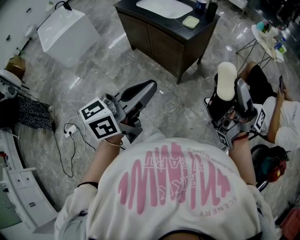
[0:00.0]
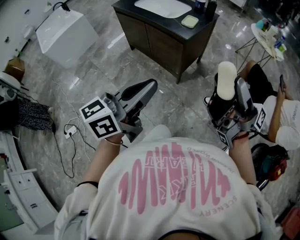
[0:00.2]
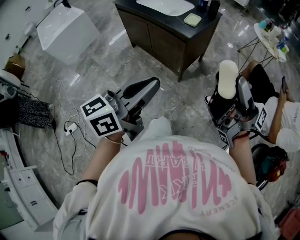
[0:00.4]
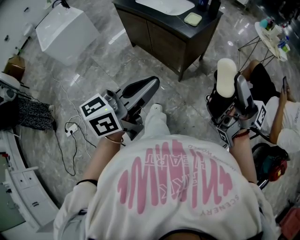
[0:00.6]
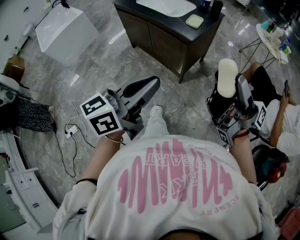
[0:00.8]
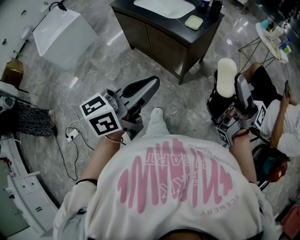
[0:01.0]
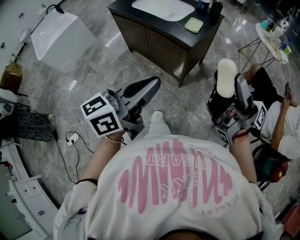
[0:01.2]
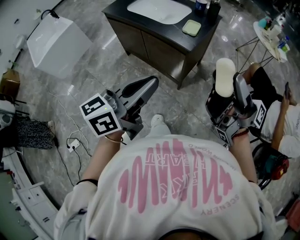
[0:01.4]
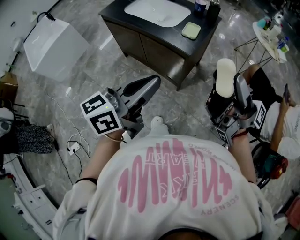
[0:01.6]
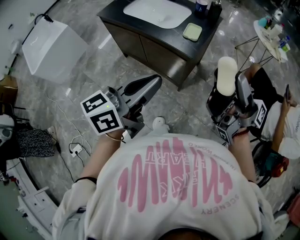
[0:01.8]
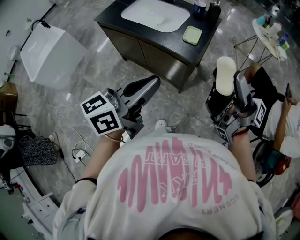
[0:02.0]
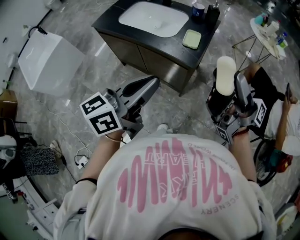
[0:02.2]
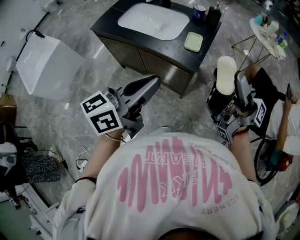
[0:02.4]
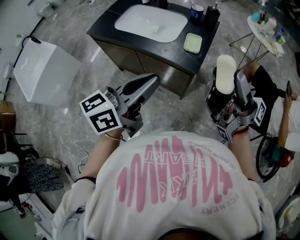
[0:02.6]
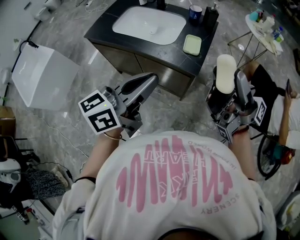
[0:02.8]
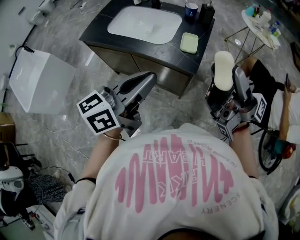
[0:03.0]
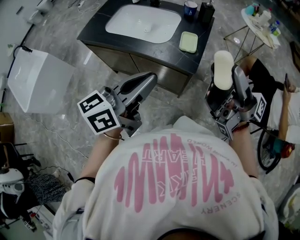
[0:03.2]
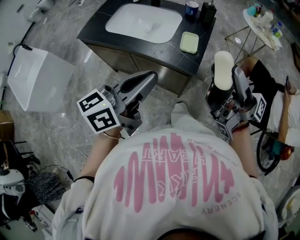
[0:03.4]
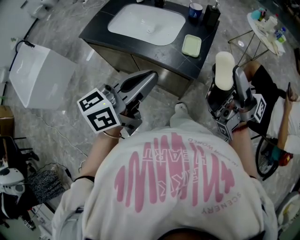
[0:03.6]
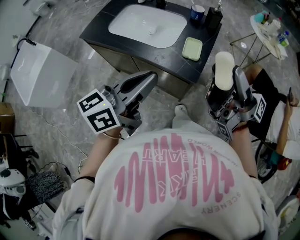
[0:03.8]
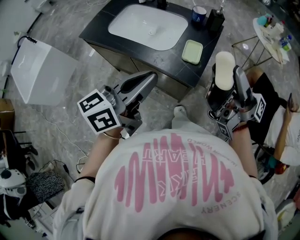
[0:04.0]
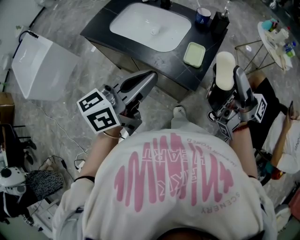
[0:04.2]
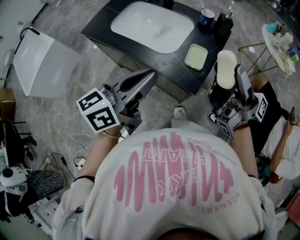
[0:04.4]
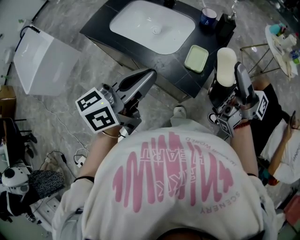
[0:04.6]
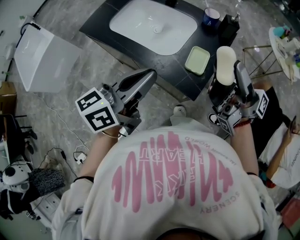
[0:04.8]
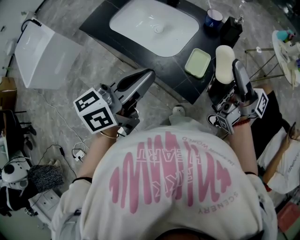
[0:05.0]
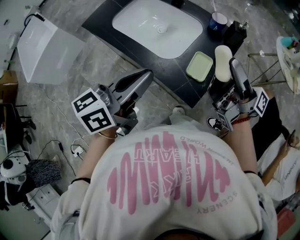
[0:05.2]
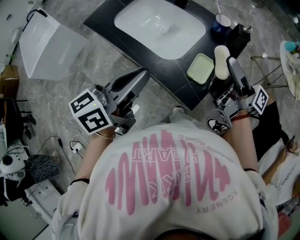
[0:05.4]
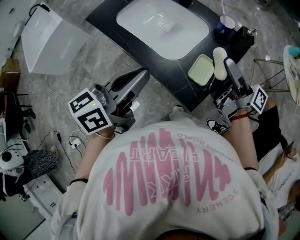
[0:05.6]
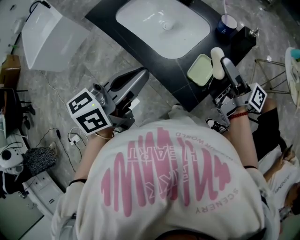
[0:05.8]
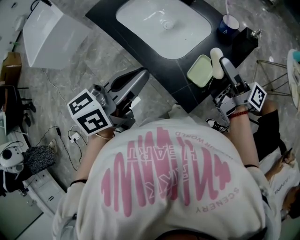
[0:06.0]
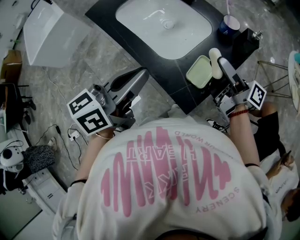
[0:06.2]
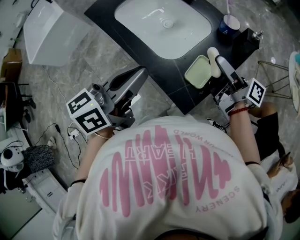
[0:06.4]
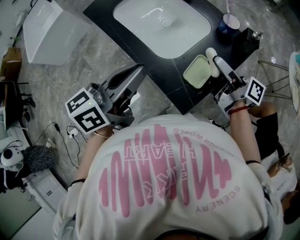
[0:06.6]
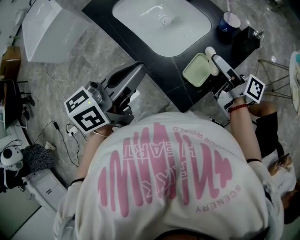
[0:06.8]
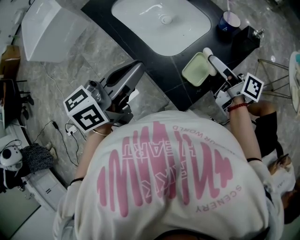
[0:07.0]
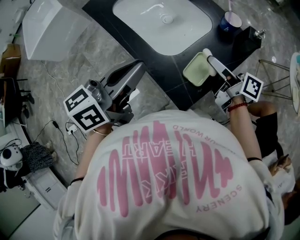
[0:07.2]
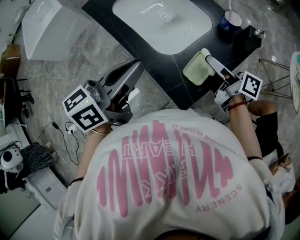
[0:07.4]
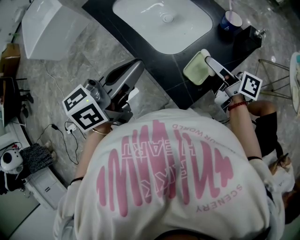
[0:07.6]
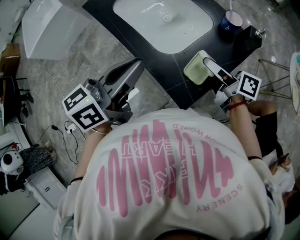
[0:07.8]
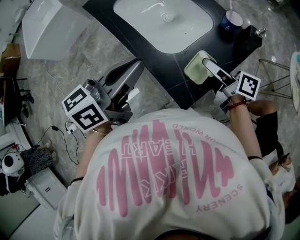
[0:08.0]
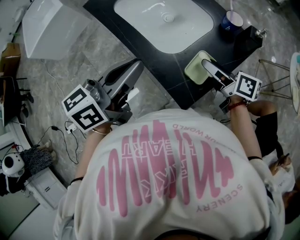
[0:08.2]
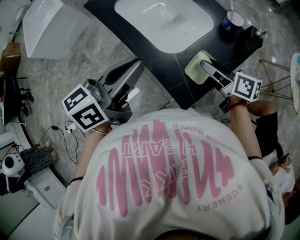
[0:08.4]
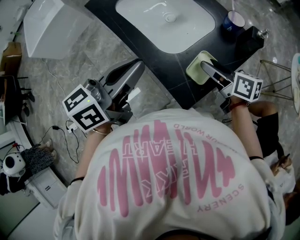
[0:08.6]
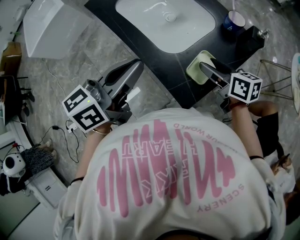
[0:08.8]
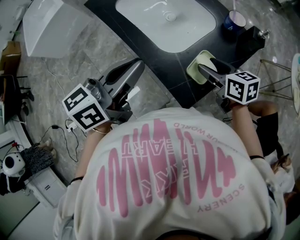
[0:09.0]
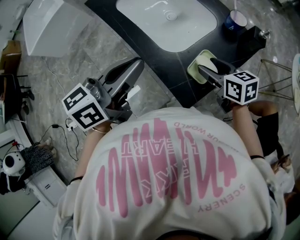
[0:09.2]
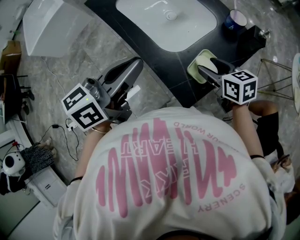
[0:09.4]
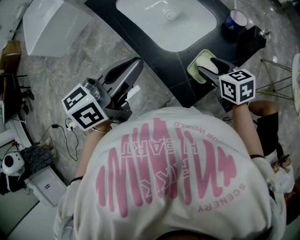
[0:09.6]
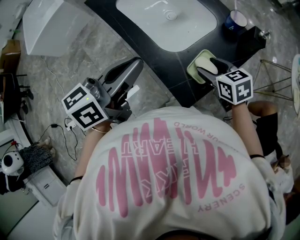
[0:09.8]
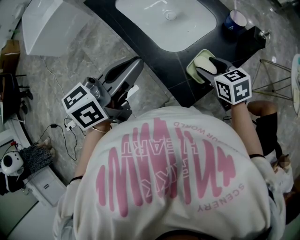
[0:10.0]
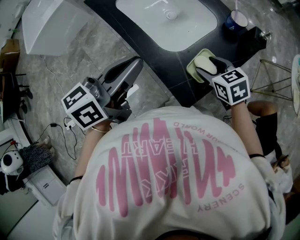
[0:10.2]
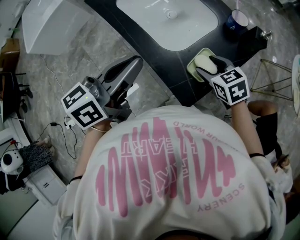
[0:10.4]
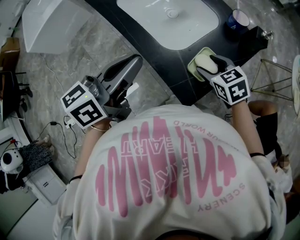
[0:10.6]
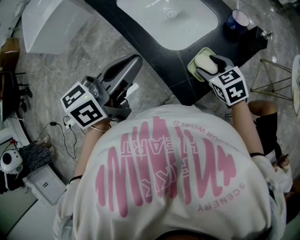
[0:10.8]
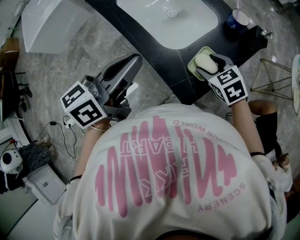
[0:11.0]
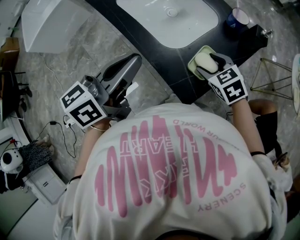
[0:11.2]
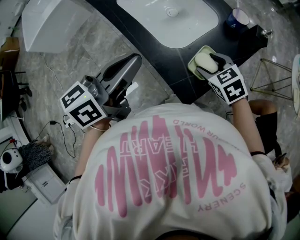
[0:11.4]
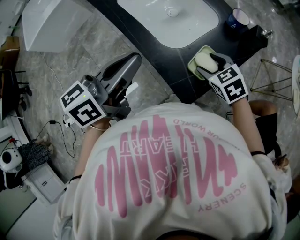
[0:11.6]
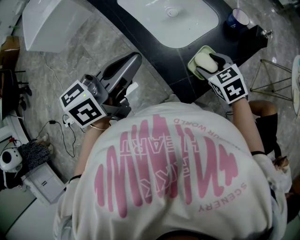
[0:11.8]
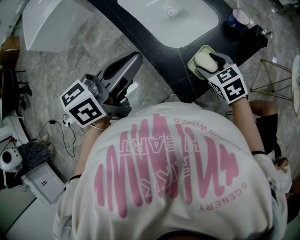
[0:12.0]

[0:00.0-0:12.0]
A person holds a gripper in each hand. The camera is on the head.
0.0 to 1.6 s: Both grippers travel together forward, approximately 15 cm.
1.6 to 3.0 s: Both grippers travel together forward and to the left, some 15 cm.
3.0 to 4.4 s: The grippers both shift forward by roughly 10 cm.
4.4 to 6.0 s: The right gripper heads forward and downward, covering some 25 cm, and changes its angle by approximately 20 degrees. Meanwhile the left gripper moves forward, roughly 10 cm.
6.0 to 7.6 s: The right gripper goes about 5 cm downward, and changes its angle by some 30 degrees.
7.6 to 9.0 s: The right gripper changes its angle by about 40 degrees.
9.0 to 10.4 s: The right gripper turns by approximately 30 degrees.
10.4 to 12.0 s: The grippers stay close to where they were, moving slightly.

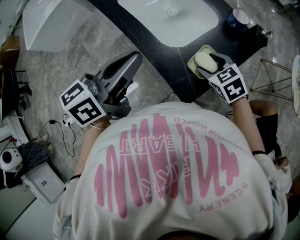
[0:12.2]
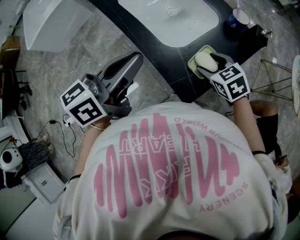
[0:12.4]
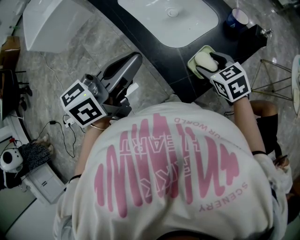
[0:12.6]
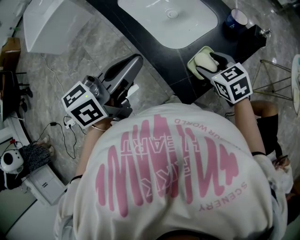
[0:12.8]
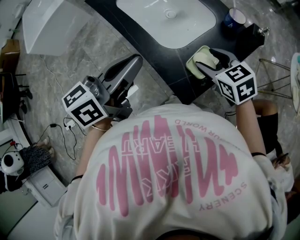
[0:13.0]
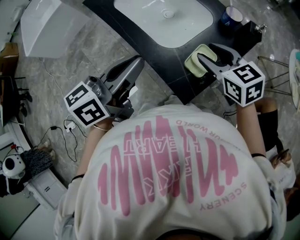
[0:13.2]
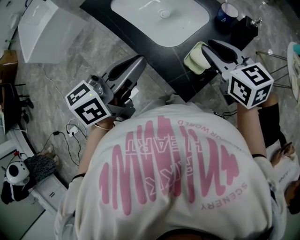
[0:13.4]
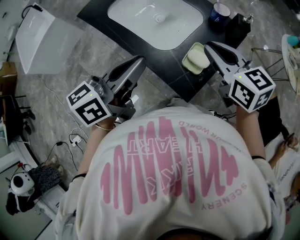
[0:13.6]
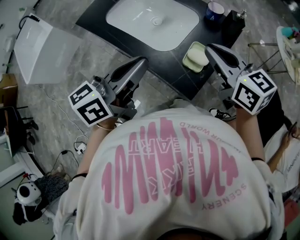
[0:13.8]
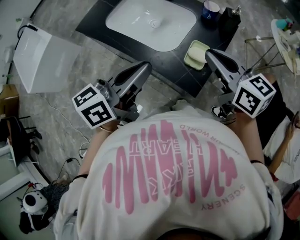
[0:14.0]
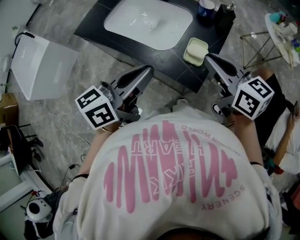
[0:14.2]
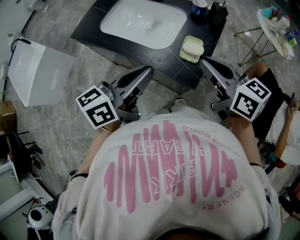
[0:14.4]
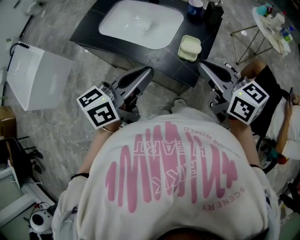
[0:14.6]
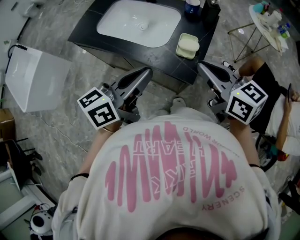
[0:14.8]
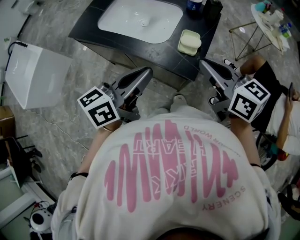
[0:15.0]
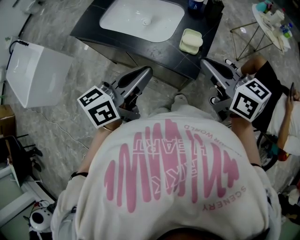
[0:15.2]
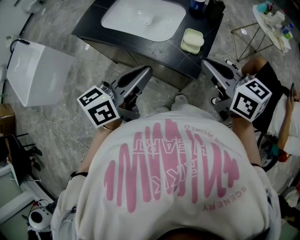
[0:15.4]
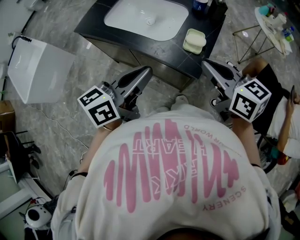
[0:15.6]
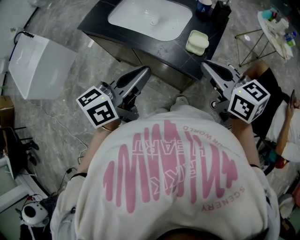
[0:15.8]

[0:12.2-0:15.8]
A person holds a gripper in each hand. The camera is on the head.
12.2 to 14.0 s: The right gripper travels upward by some 20 cm, tips its fingers upward by about 40 degrees, and closes up.
14.0 to 15.8 s: Both grippers travel together backward, approximately 10 cm.

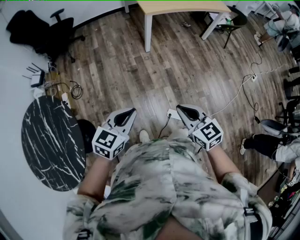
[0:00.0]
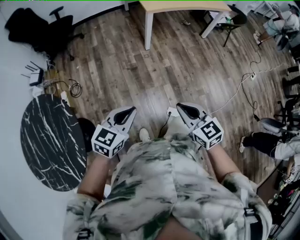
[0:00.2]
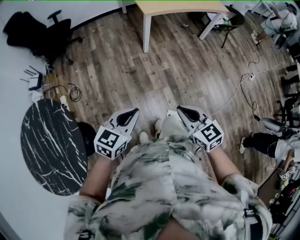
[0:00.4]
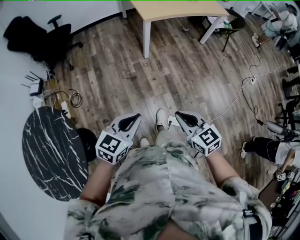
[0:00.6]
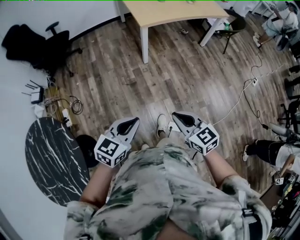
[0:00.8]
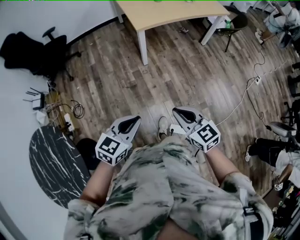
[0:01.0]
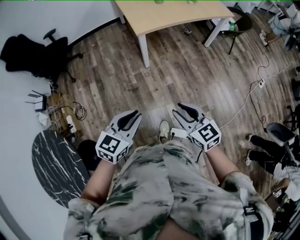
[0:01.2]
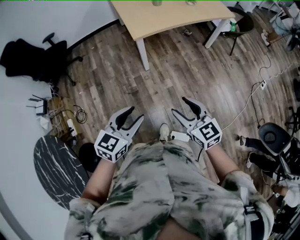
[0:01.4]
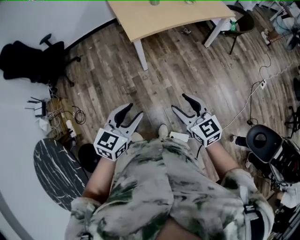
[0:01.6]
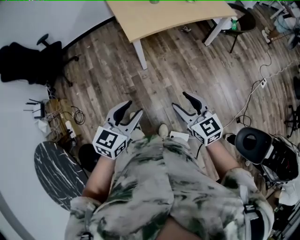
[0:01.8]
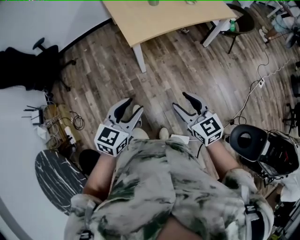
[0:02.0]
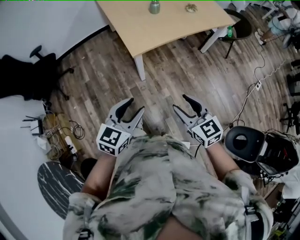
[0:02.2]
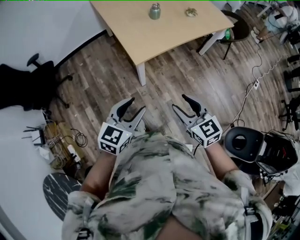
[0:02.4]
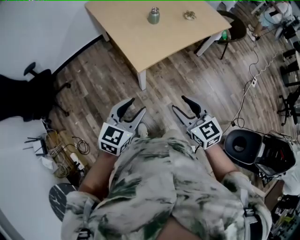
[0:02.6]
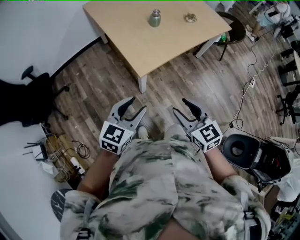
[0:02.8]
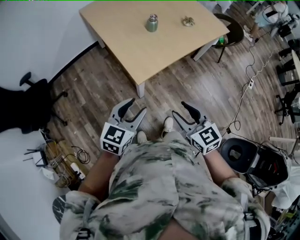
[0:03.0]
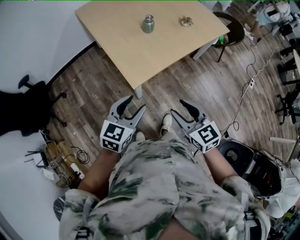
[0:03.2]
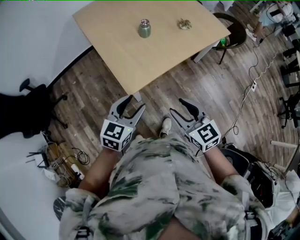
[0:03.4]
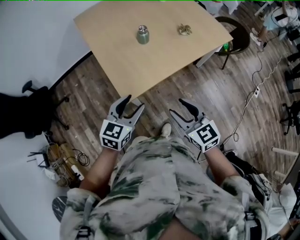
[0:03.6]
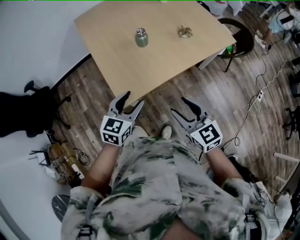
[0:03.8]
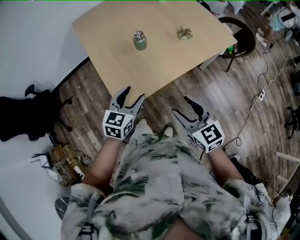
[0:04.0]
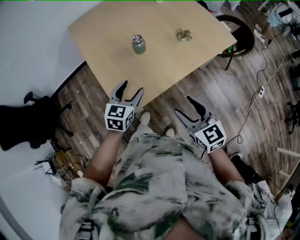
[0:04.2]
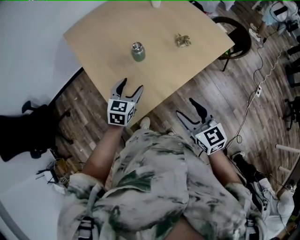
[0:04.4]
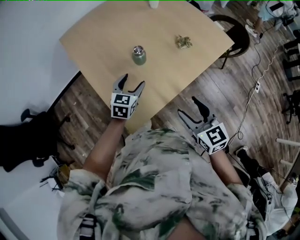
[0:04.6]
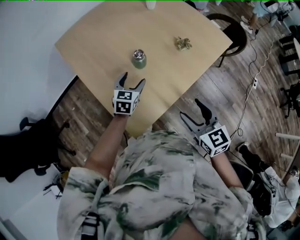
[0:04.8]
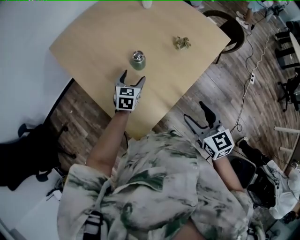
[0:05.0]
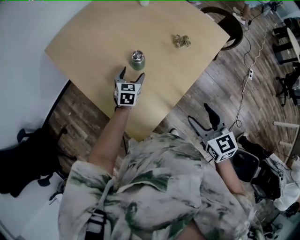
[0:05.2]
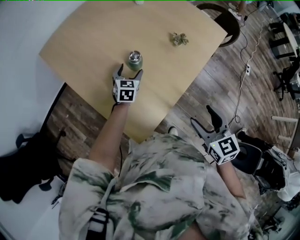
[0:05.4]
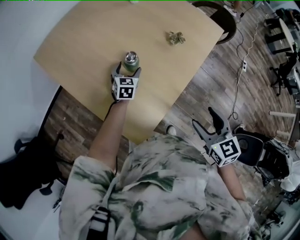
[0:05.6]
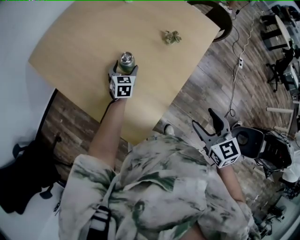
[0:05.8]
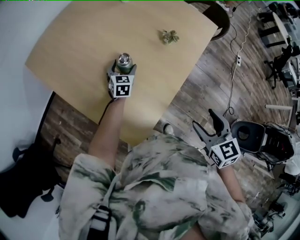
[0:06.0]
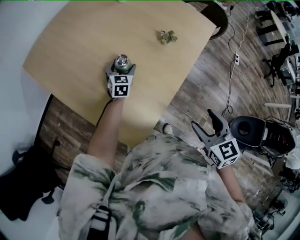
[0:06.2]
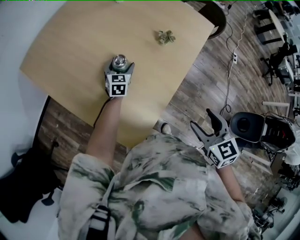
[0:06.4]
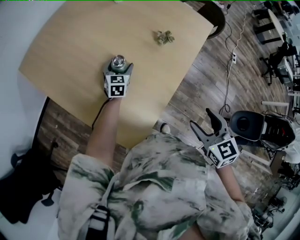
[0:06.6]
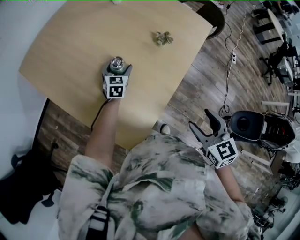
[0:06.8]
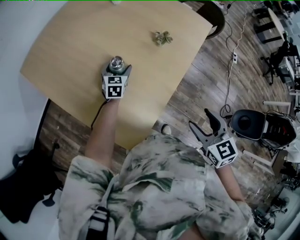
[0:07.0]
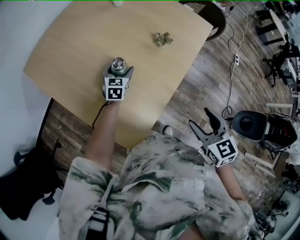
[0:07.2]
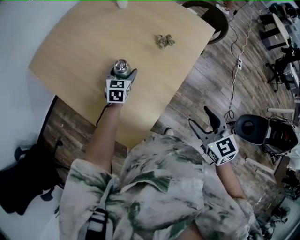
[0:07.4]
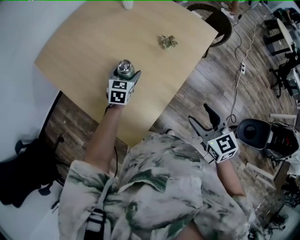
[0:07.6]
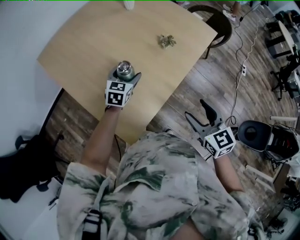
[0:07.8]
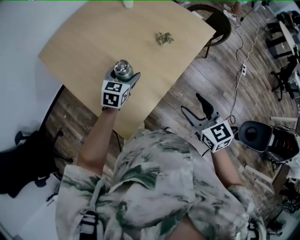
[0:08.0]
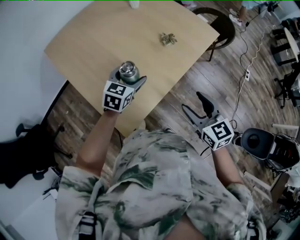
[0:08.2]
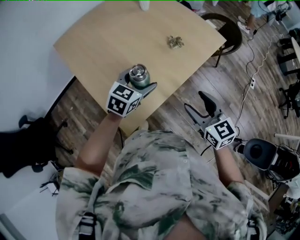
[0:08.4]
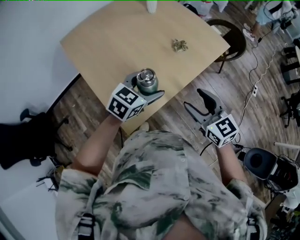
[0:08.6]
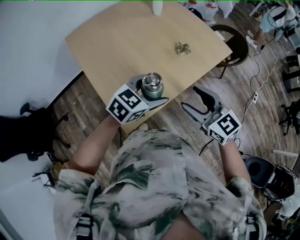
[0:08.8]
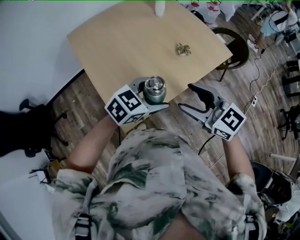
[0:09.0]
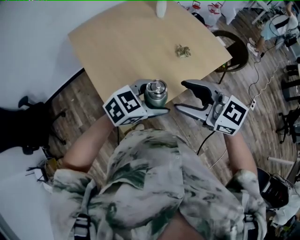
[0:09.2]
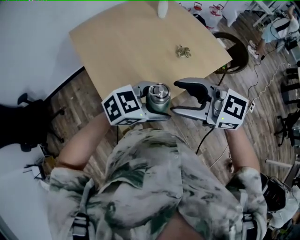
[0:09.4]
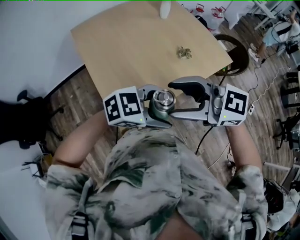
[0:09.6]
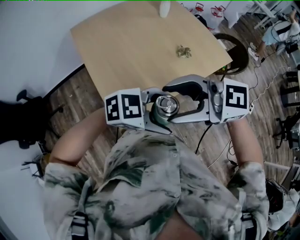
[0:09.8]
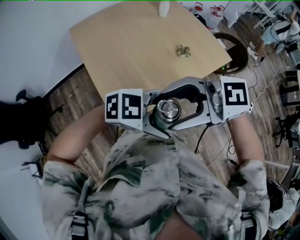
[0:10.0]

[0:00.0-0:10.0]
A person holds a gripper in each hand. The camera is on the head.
0.0 to 1.4 s: The two grippers go some 30 cm forward. The left gripper opens its fingers. Meanwhile the right gripper opens its fingers.
1.4 to 2.8 s: The right gripper is displaced forward and to the left by roughly 30 cm. Meanwhile the left gripper heads forward, covering about 35 cm.
2.8 to 4.2 s: The left gripper moves forward, approximately 35 cm; the right gripper goes about 30 cm forward and to the right.
4.2 to 5.8 s: The left gripper is displaced forward and downward by some 35 cm, while the right gripper goes some 10 cm forward, and changes its angle by roughly 30 degrees.
5.8 to 7.2 s: The grippers stay close to where they were, moving slightly.
7.2 to 8.6 s: The left gripper shifts some 35 cm backward, upward and to the right, while the right gripper heads upward, covering approximately 5 cm, and rotates about 30 degrees.
8.6 to 10.0 s: The right gripper travels upward by roughly 15 cm, and changes its angle by roughly 70 degrees. The left gripper shifts by roughly 20 cm, and turns by some 50 degrees.
